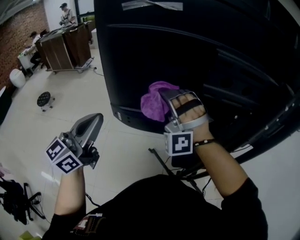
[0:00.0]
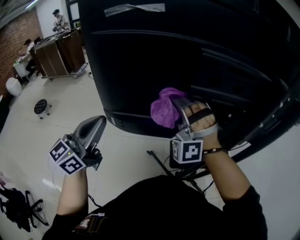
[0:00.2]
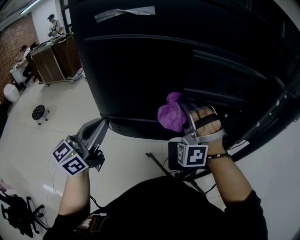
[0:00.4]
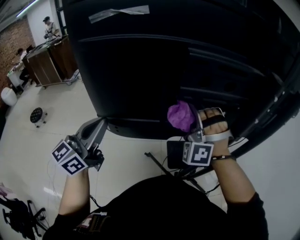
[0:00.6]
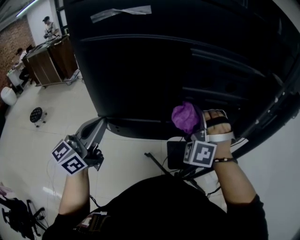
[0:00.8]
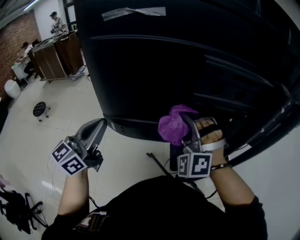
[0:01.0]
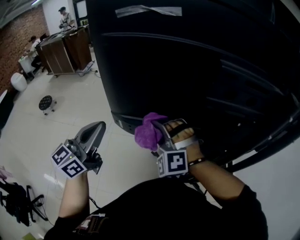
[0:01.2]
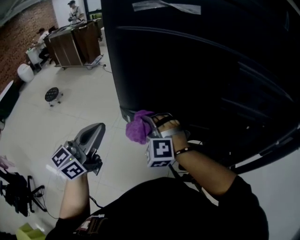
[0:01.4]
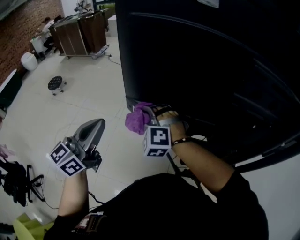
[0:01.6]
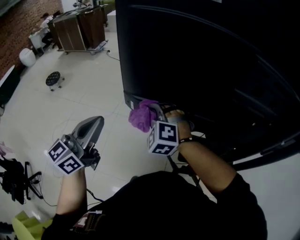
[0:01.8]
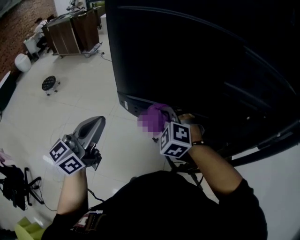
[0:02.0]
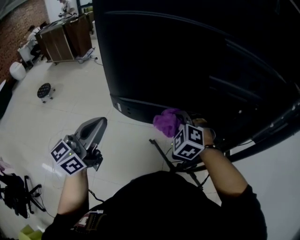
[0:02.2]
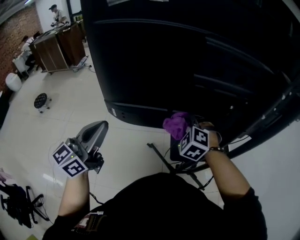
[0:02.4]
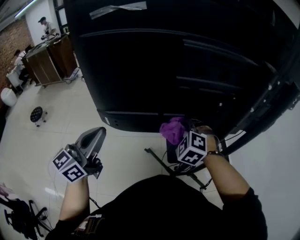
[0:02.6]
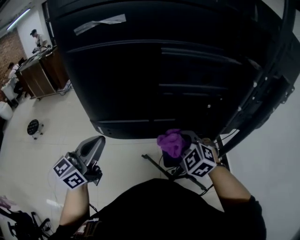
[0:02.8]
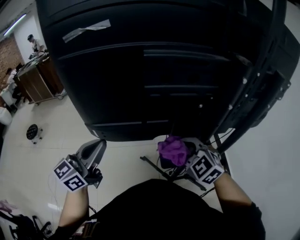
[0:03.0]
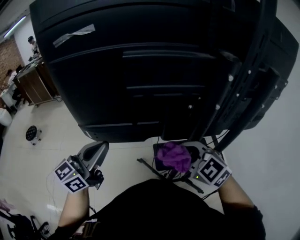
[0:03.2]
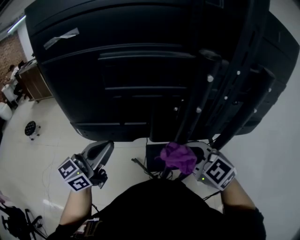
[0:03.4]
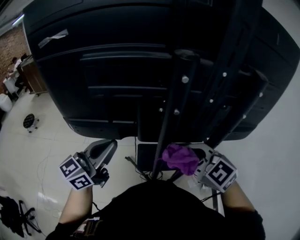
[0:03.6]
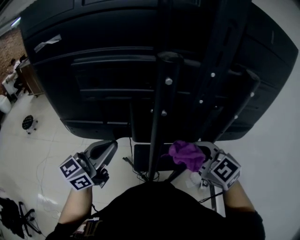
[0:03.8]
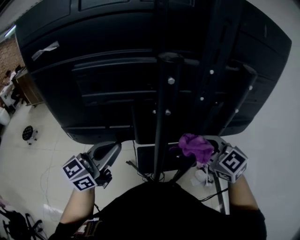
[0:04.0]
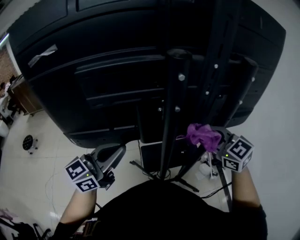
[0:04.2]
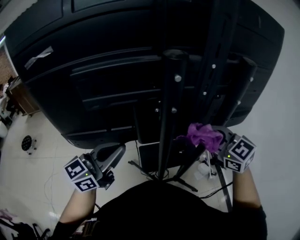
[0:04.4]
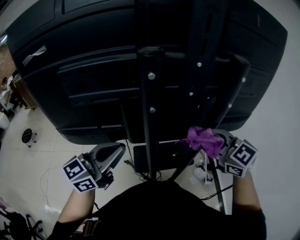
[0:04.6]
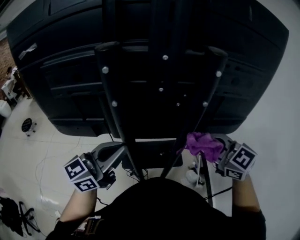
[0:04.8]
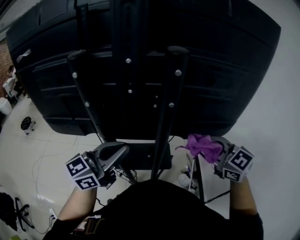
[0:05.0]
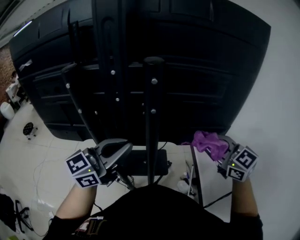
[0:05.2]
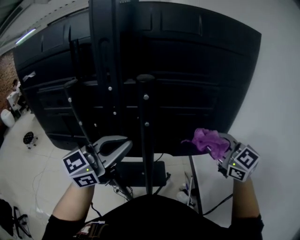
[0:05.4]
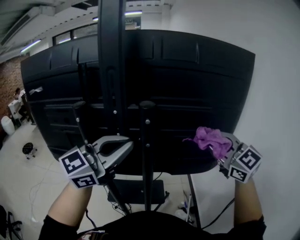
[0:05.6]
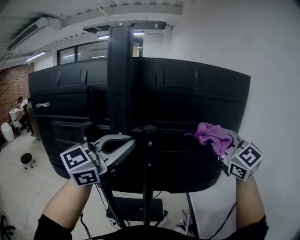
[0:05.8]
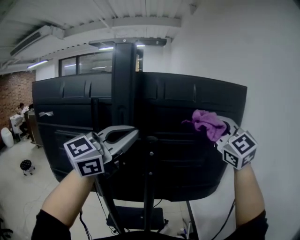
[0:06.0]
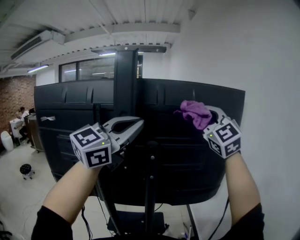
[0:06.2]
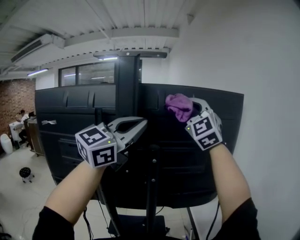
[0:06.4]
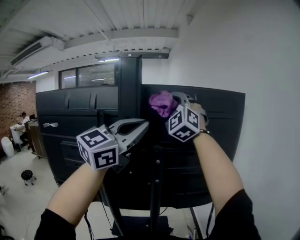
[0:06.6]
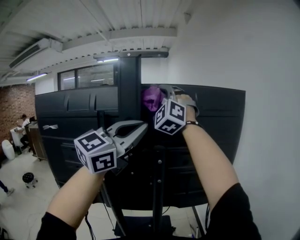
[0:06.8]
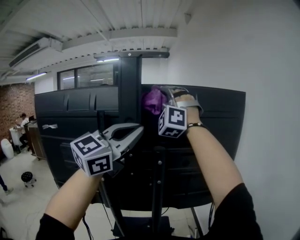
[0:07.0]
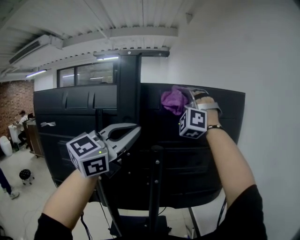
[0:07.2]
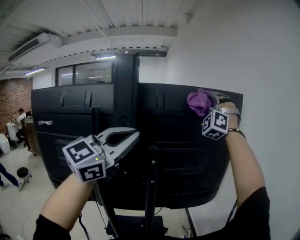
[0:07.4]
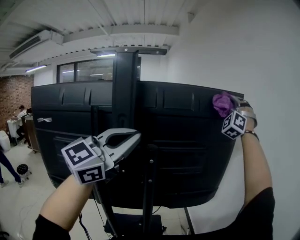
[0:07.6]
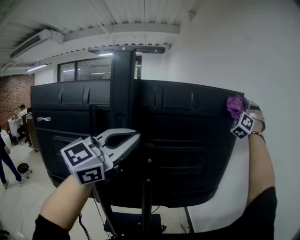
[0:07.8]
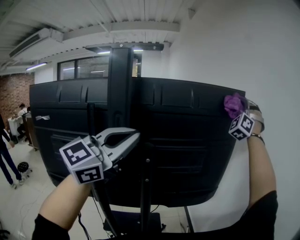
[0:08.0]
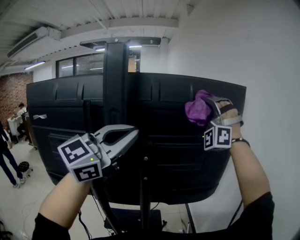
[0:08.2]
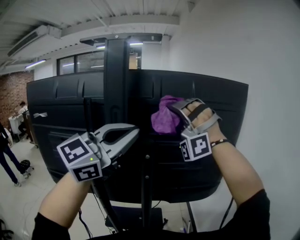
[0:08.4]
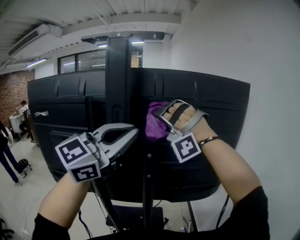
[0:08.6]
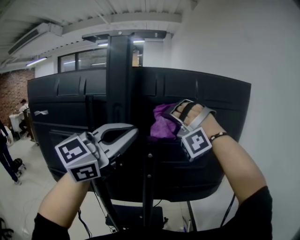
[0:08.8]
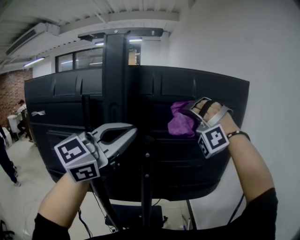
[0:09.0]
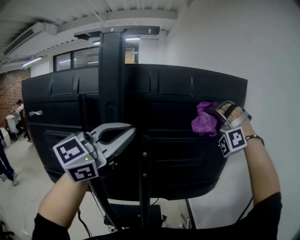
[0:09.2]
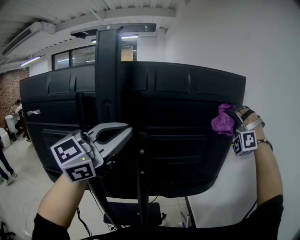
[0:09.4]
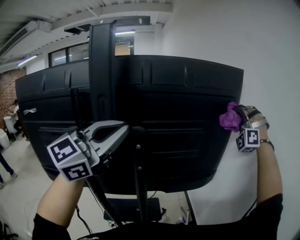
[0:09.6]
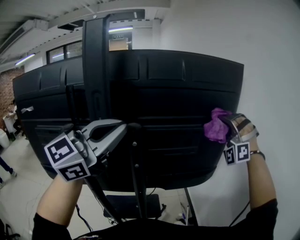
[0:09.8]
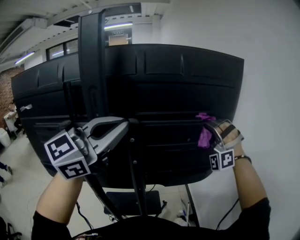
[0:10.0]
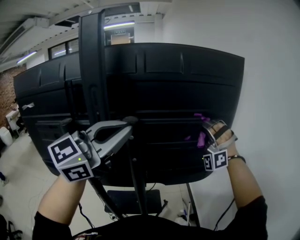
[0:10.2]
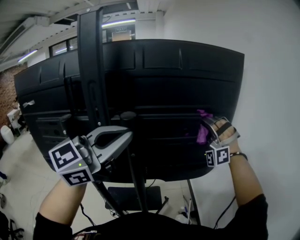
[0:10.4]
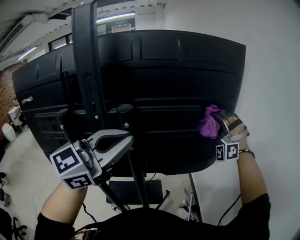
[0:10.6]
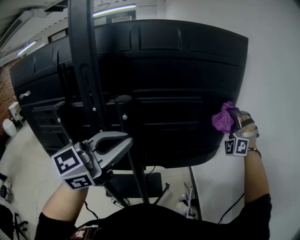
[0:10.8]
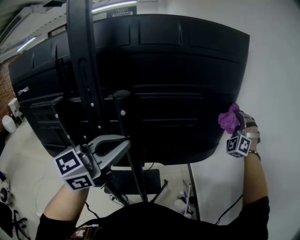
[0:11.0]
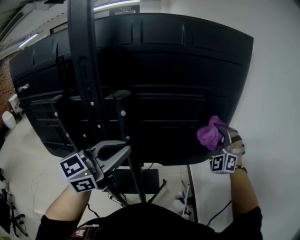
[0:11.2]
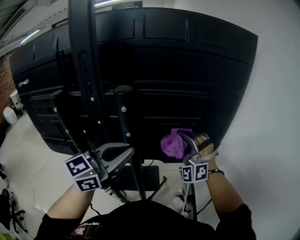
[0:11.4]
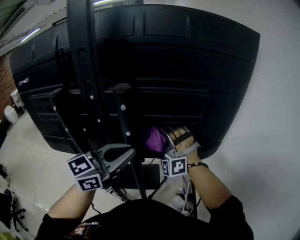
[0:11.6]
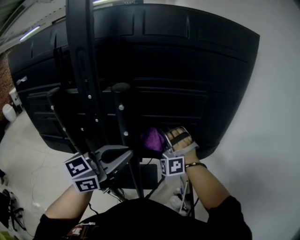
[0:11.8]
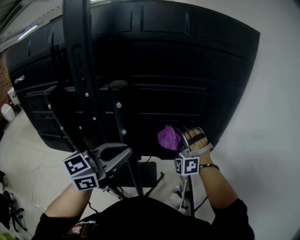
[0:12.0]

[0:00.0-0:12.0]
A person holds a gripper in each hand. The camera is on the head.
0:00.0 to 0:01.6: The left gripper moves approximately 5 cm.
0:01.6 to 0:03.0: The left gripper shifts by roughly 10 cm, and swivels some 20 degrees.
0:03.0 to 0:04.4: The left gripper changes place by some 20 cm.
0:04.4 to 0:06.0: The left gripper changes place by roughly 40 cm, and swivels roughly 30 degrees.
0:09.0 to 0:10.4: The left gripper moves downward, about 5 cm.
0:10.4 to 0:12.0: The left gripper moves downward, some 15 cm, and changes its angle by approximately 20 degrees.

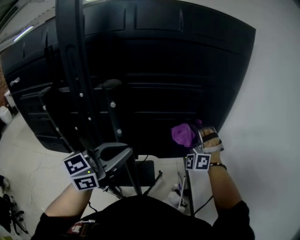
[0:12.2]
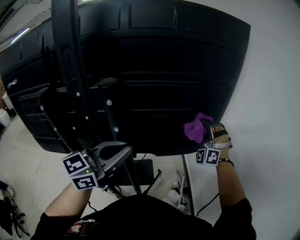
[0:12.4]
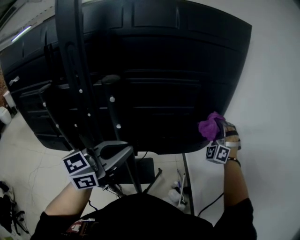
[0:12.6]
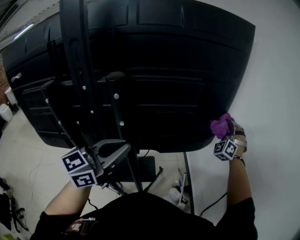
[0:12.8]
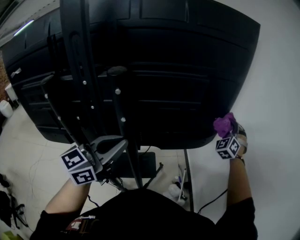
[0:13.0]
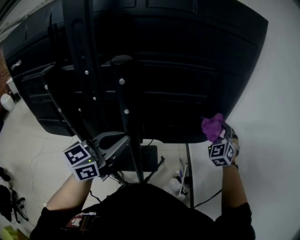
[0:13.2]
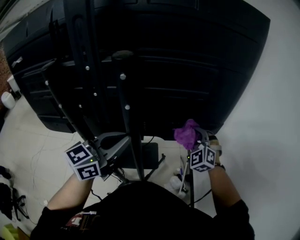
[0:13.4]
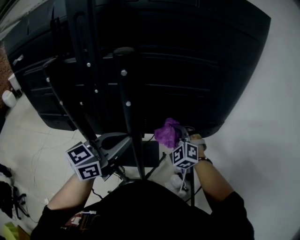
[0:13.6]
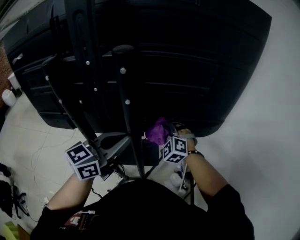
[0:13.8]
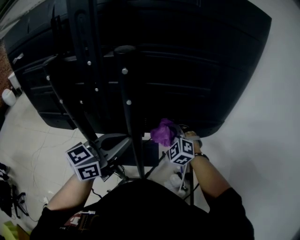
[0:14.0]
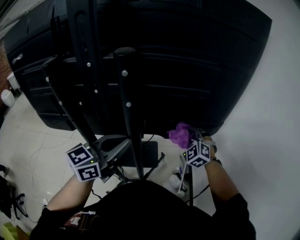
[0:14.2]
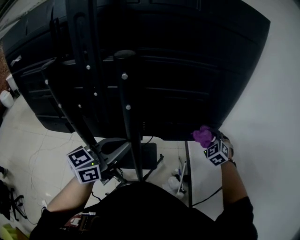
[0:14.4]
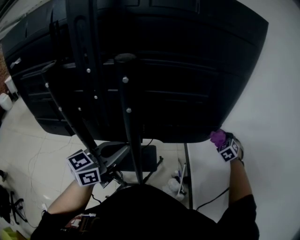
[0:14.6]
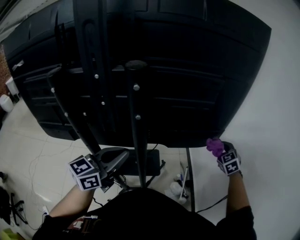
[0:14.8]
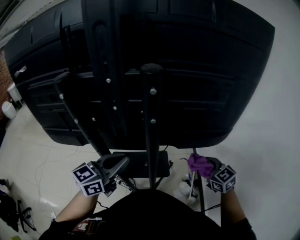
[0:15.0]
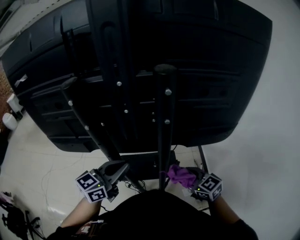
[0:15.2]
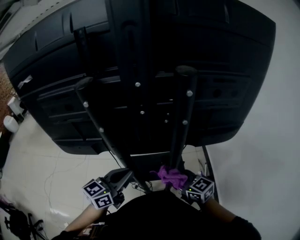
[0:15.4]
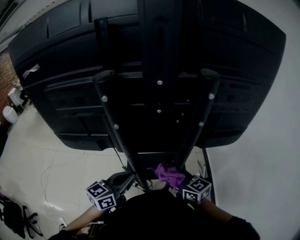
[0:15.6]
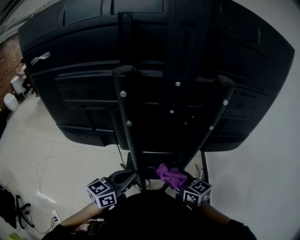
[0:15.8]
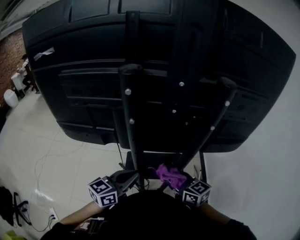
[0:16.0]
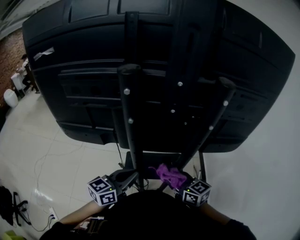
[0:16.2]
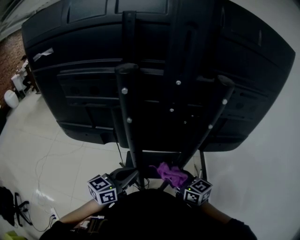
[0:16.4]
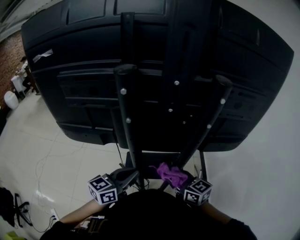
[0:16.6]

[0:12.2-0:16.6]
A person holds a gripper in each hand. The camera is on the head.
0:12.2 to 0:13.6: The left gripper heads downward, covering about 5 cm.
0:13.6 to 0:15.2: The left gripper ends up roughly 15 cm from where it was.
0:15.2 to 0:16.6: The left gripper changes place by approximately 10 cm.

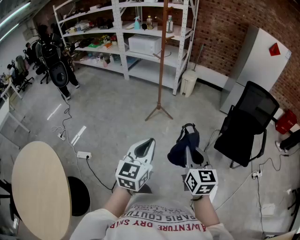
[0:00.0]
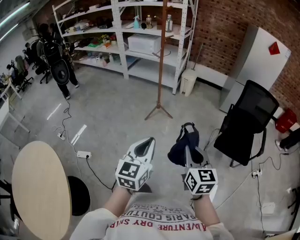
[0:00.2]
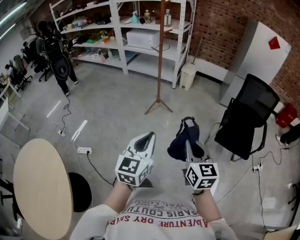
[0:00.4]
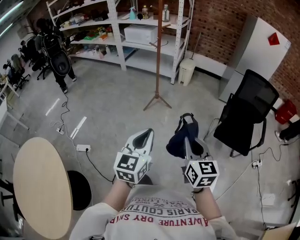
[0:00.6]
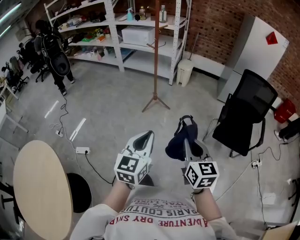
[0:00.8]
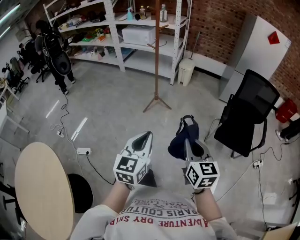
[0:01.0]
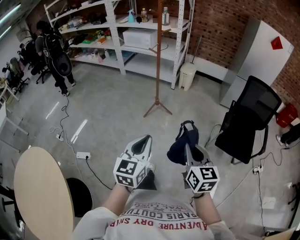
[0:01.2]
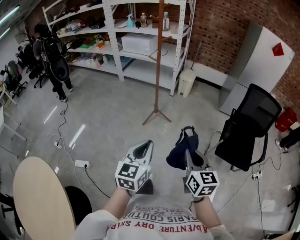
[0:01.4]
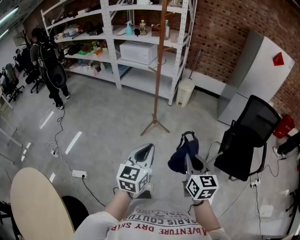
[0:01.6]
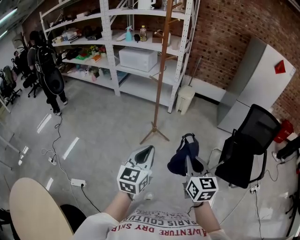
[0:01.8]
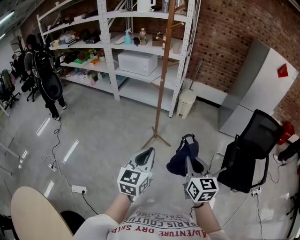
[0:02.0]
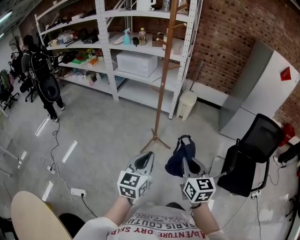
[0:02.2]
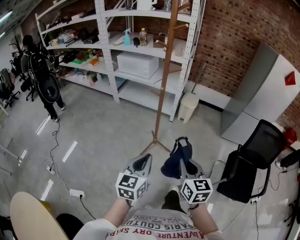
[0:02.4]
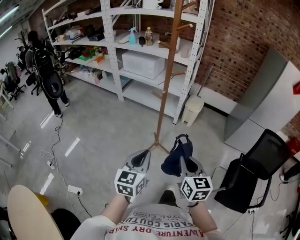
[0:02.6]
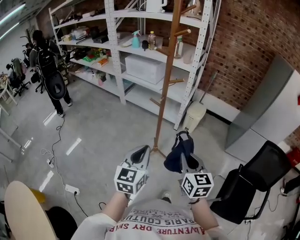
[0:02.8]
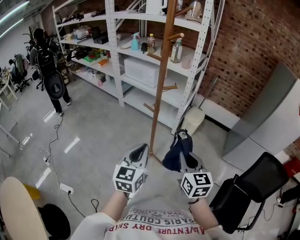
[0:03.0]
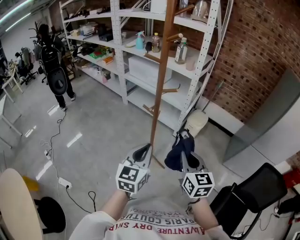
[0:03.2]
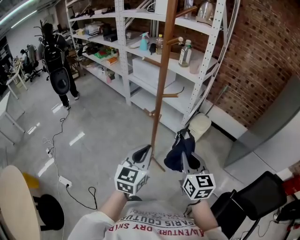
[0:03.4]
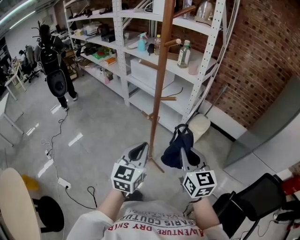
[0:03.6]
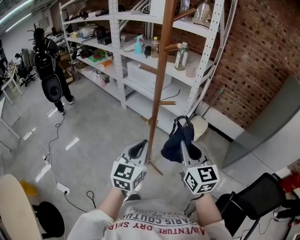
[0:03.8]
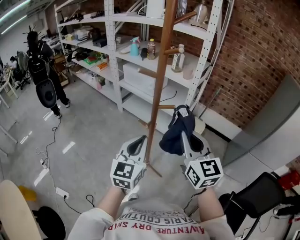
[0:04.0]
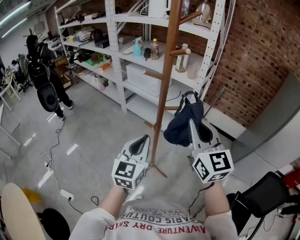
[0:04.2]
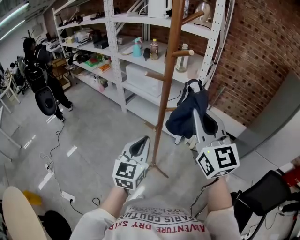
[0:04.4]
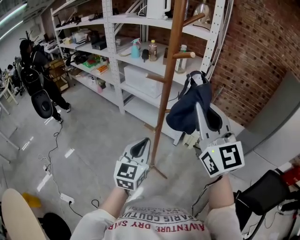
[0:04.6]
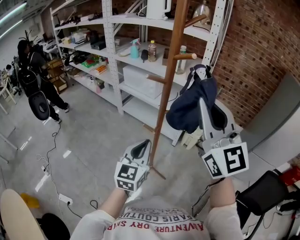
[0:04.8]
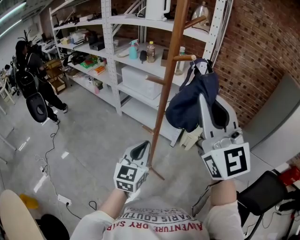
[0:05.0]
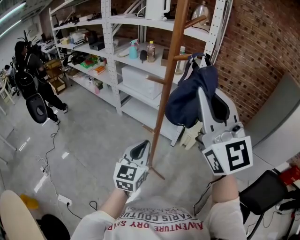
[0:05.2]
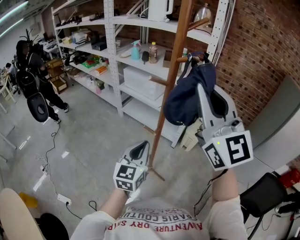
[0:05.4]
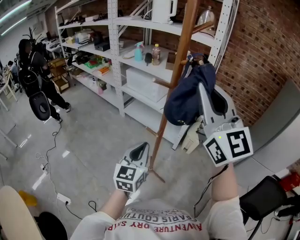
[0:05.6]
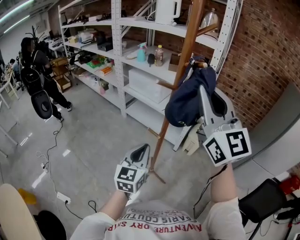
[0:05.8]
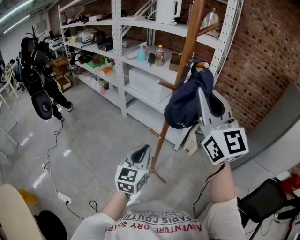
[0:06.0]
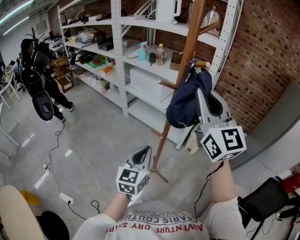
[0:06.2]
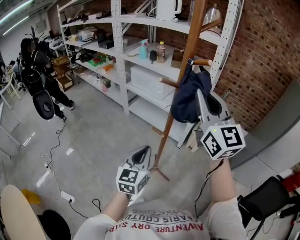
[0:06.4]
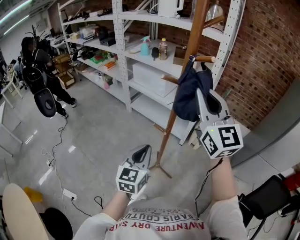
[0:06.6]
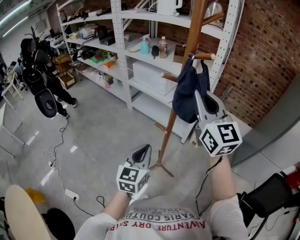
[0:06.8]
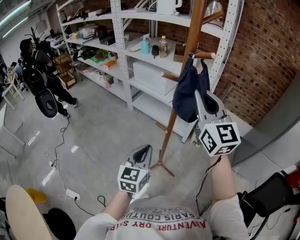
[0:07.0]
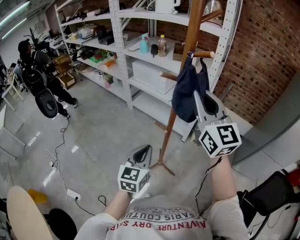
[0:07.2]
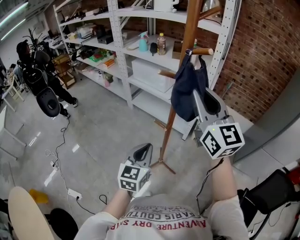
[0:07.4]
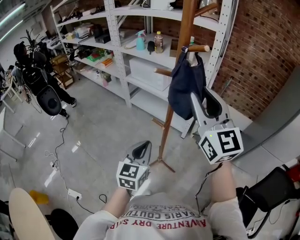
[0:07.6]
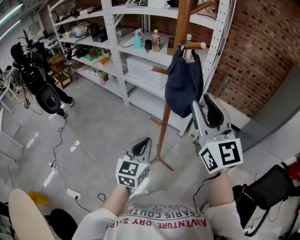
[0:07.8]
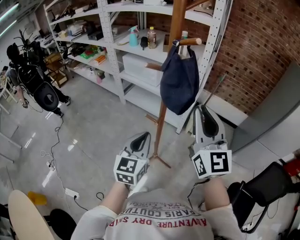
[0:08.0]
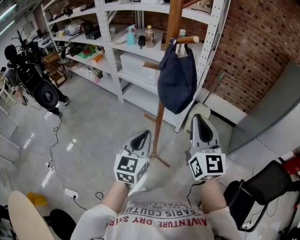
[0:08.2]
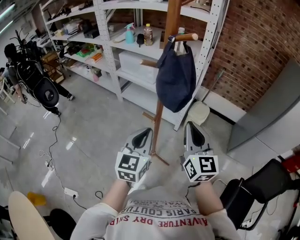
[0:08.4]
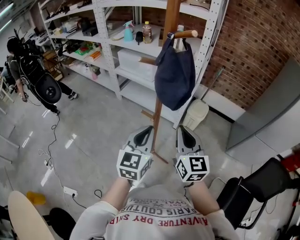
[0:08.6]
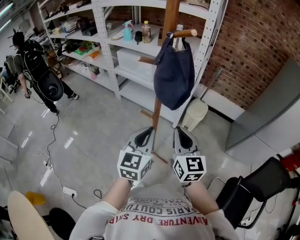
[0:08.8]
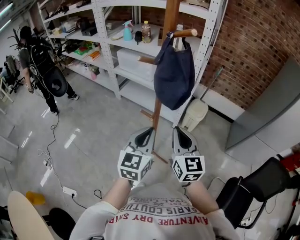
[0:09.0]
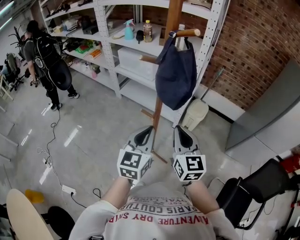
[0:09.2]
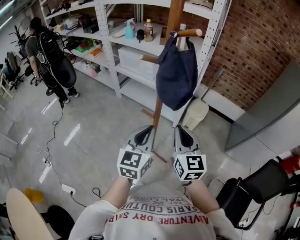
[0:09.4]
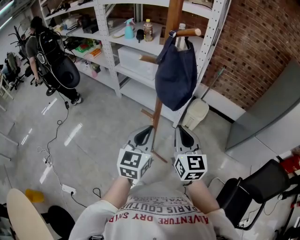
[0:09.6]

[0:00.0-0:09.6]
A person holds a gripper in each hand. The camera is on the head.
0:00.0 to 0:01.6: The two grippers go approximately 20 cm forward.
0:01.6 to 0:03.2: The pair of grippers is taken forward, about 50 cm.
0:03.2 to 0:04.8: The right gripper travels upward and forward by some 30 cm, and tips its fingers upward by approximately 30 degrees, while the left gripper travels forward by some 15 cm.
0:04.8 to 0:06.4: The right gripper is displaced forward by about 10 cm. Meanwhile the left gripper changes place by roughly 5 cm.
0:06.4 to 0:08.0: The right gripper heads downward, covering approximately 10 cm.
0:08.0 to 0:09.6: The right gripper heads downward, covering roughly 15 cm, and turns by some 20 degrees.
